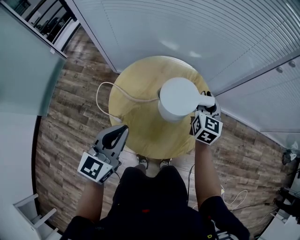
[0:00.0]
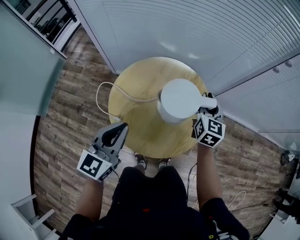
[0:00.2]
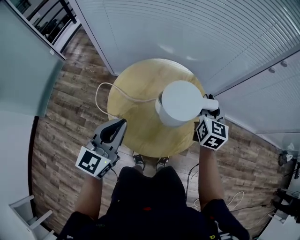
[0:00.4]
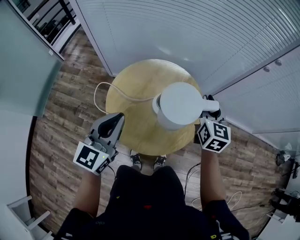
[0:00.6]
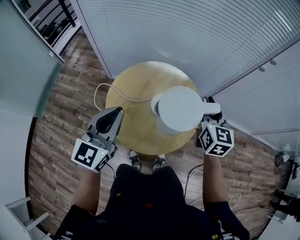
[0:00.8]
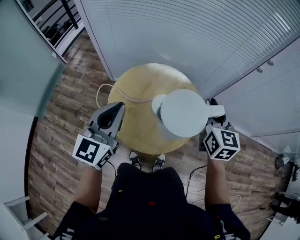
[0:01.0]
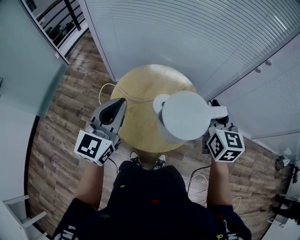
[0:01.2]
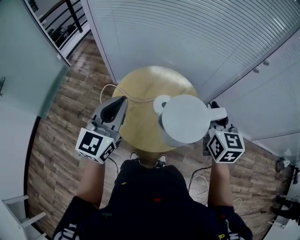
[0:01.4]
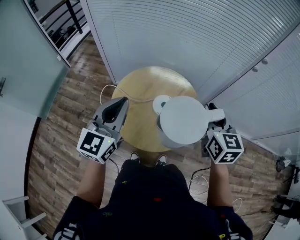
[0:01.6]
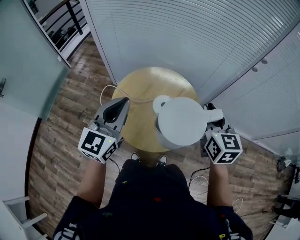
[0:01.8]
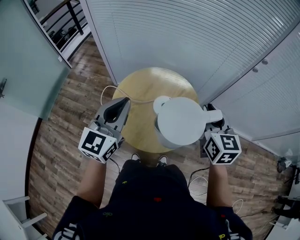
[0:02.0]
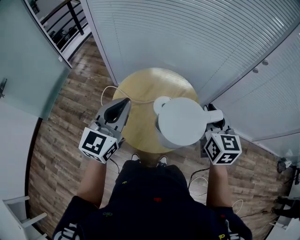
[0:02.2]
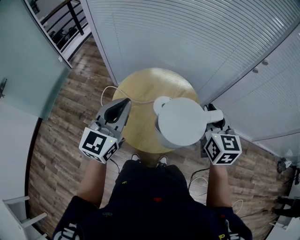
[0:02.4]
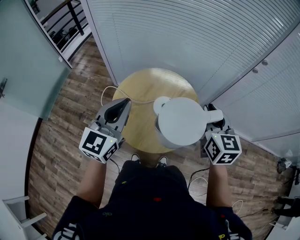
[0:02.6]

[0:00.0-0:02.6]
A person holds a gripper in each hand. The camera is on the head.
0:00.0 to 0:01.2: The right gripper travels upward and backward by about 25 cm. The left gripper shifts approximately 15 cm upward.
0:01.2 to 0:02.6: The grippers stay close to where they were, moving slightly.

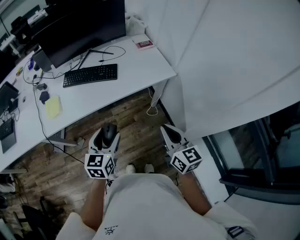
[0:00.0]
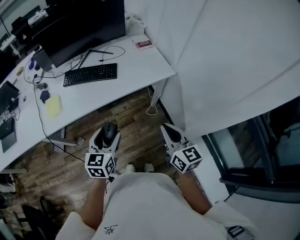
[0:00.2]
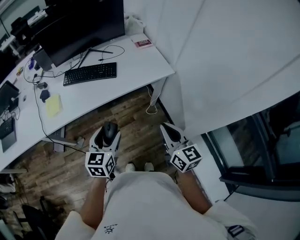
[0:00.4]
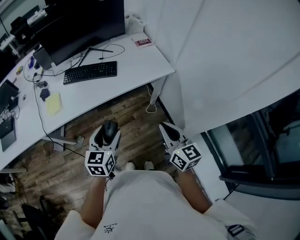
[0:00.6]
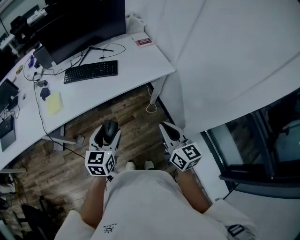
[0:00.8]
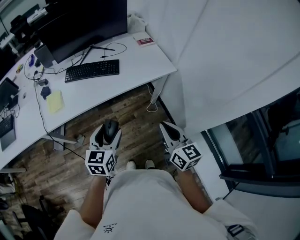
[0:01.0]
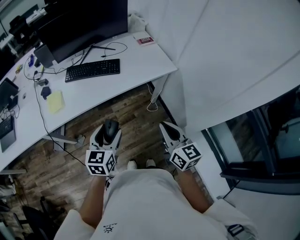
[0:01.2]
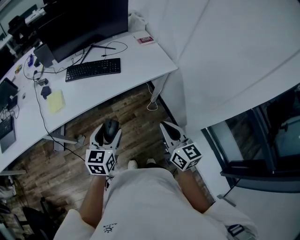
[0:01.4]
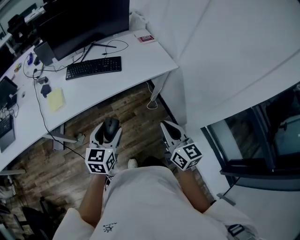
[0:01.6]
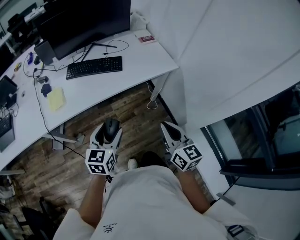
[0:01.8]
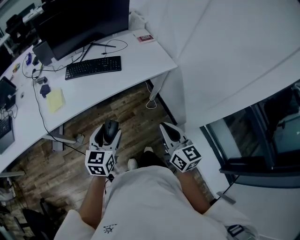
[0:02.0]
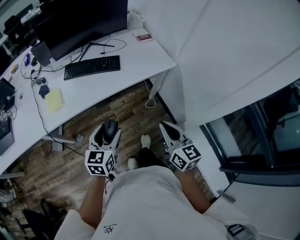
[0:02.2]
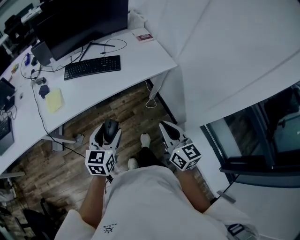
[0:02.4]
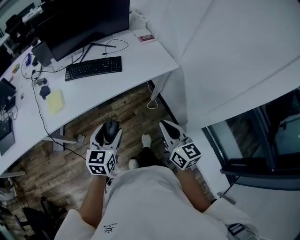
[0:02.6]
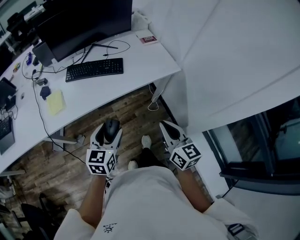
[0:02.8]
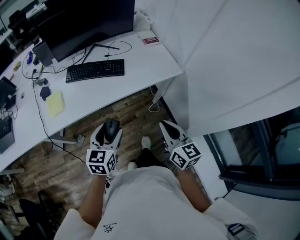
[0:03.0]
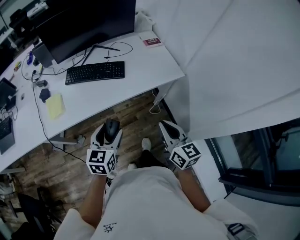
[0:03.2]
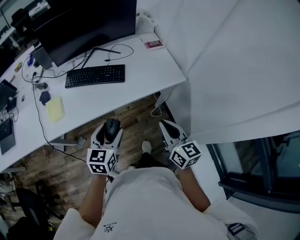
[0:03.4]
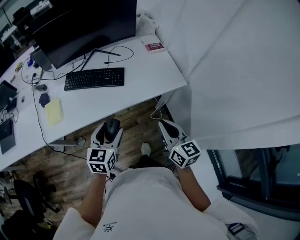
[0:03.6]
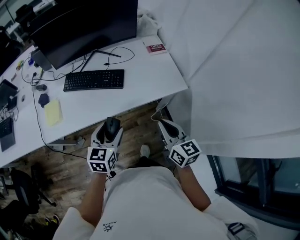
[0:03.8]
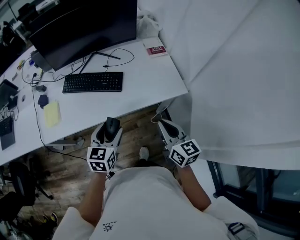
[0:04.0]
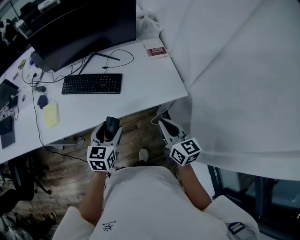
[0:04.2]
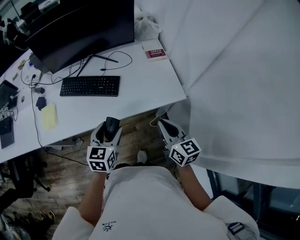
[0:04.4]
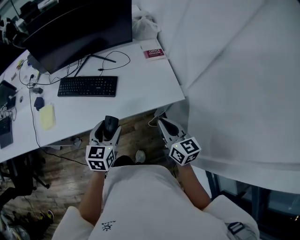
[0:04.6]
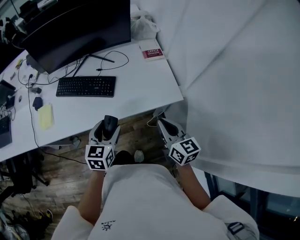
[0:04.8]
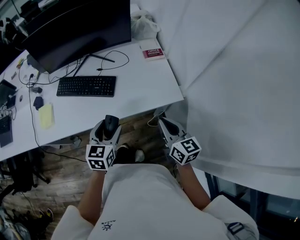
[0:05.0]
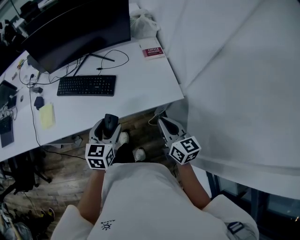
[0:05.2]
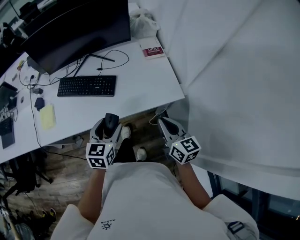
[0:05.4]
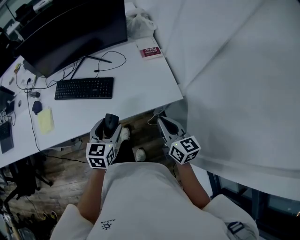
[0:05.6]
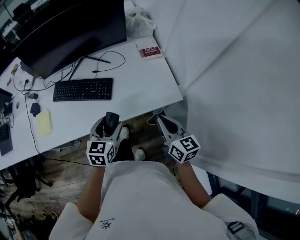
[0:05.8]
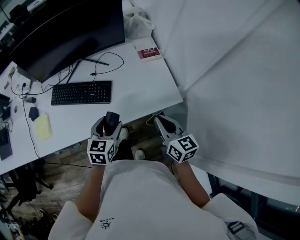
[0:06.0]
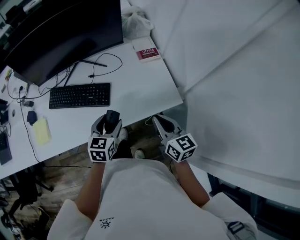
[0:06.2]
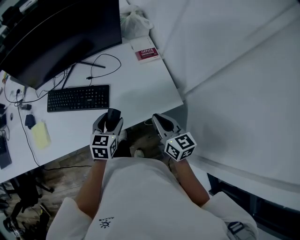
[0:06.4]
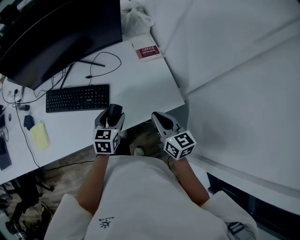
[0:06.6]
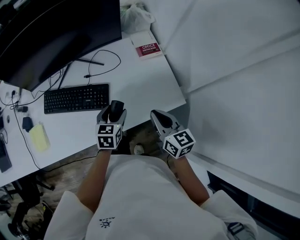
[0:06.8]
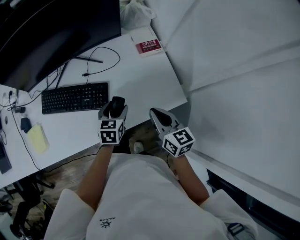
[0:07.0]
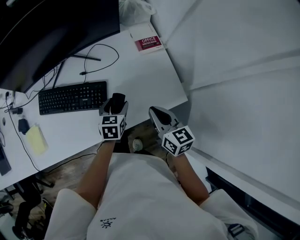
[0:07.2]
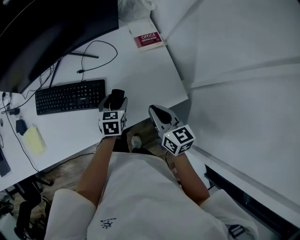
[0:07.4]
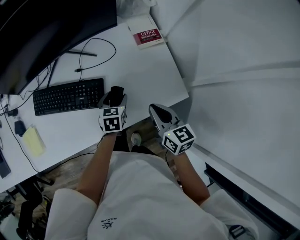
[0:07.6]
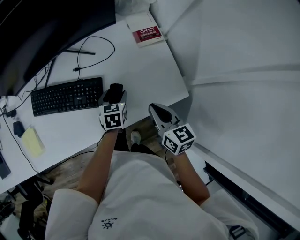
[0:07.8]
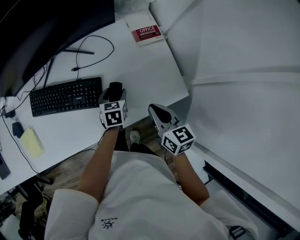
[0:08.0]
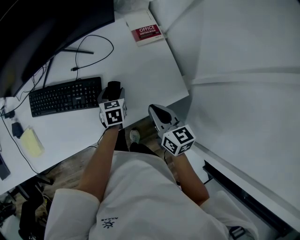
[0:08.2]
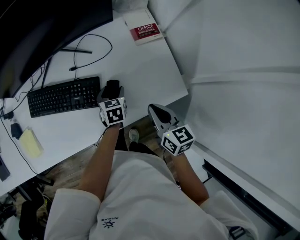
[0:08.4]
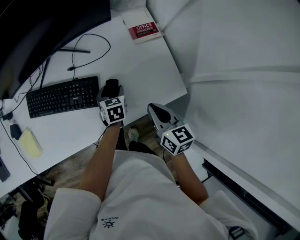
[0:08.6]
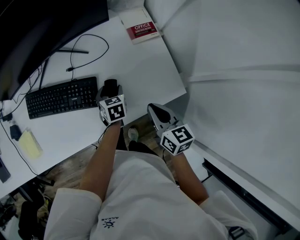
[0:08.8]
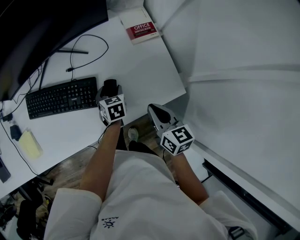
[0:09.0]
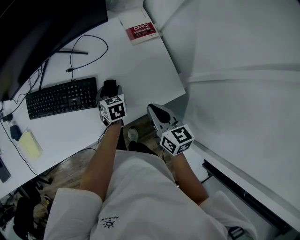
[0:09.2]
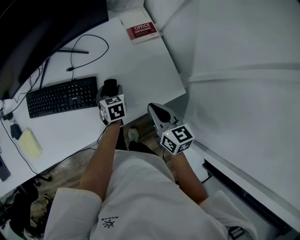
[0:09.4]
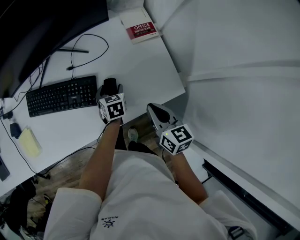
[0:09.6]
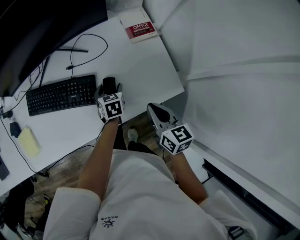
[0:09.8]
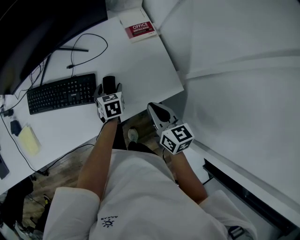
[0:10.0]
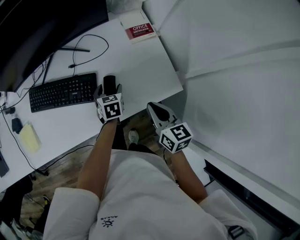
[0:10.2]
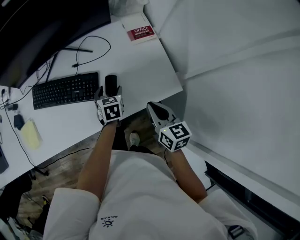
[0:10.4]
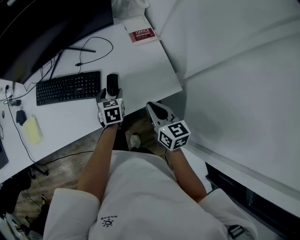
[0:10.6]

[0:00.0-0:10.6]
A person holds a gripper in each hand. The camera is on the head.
0:00.0 to 0:01.6: The left gripper ends up about 5 cm from where it was, while the right gripper moves to the left, about 5 cm.
0:01.6 to 0:03.0: The grippers both shift forward by roughly 5 cm.
0:03.0 to 0:04.6: The grippers both shift forward and to the right by some 25 cm.
0:04.6 to 0:06.0: Both grippers travel together forward, roughly 5 cm.
0:06.0 to 0:07.6: The left gripper goes approximately 20 cm forward and downward. The right gripper is displaced forward and downward by about 15 cm.
0:07.6 to 0:09.0: The grippers make only small movements.
0:09.0 to 0:10.6: The left gripper is displaced backward and upward by roughly 10 cm.

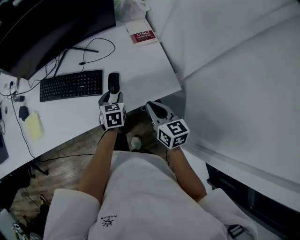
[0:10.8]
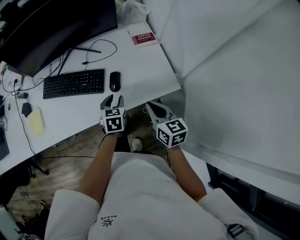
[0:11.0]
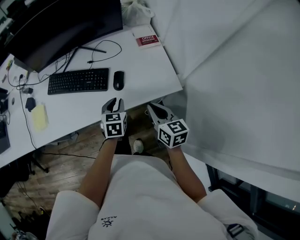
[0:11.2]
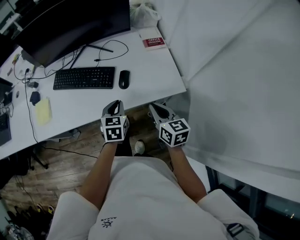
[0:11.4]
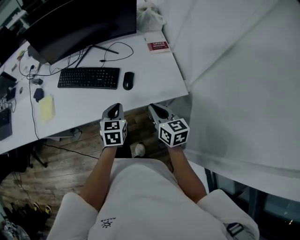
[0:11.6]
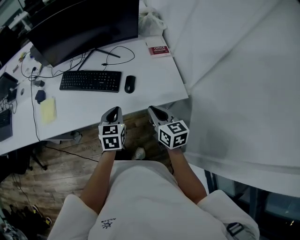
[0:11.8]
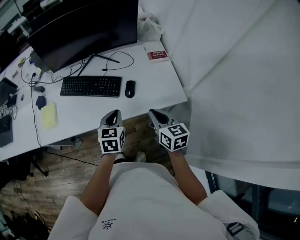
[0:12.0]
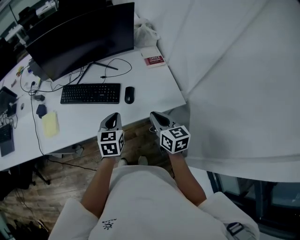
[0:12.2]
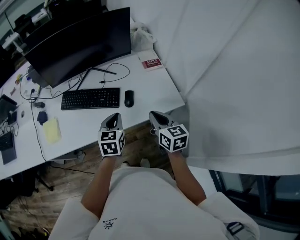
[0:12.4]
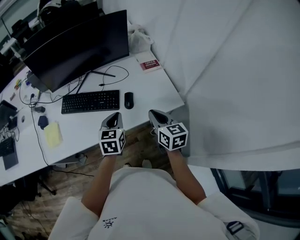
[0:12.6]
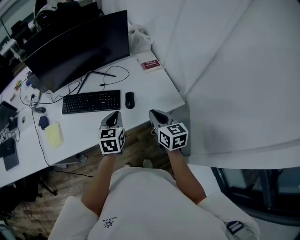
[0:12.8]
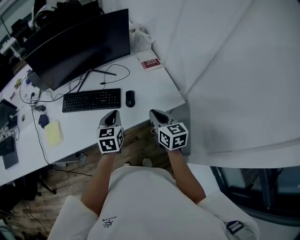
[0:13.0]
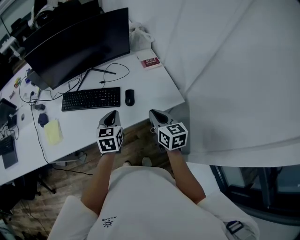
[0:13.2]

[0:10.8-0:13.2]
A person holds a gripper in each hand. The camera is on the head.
0:10.8 to 0:12.0: The left gripper moves upward, backward and to the left, about 20 cm, and closes its fingers; the right gripper shifts some 5 cm to the left.
0:12.0 to 0:13.2: The grippers make only small movements.

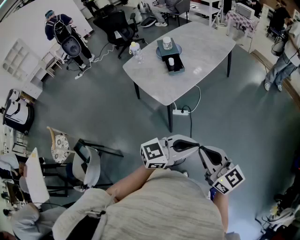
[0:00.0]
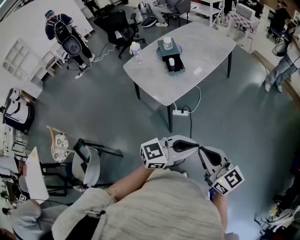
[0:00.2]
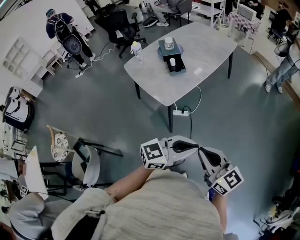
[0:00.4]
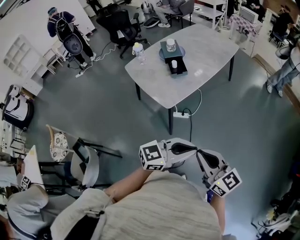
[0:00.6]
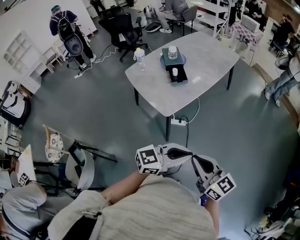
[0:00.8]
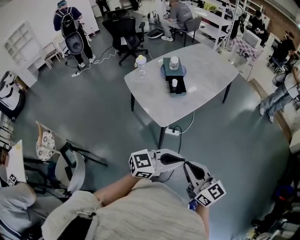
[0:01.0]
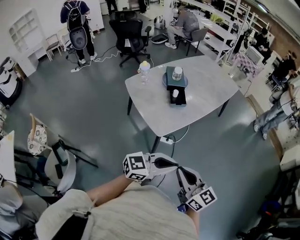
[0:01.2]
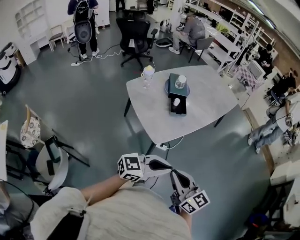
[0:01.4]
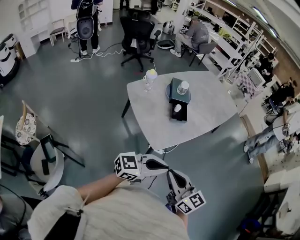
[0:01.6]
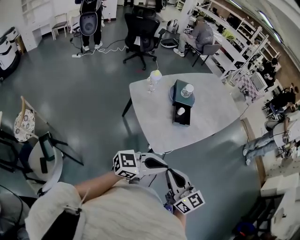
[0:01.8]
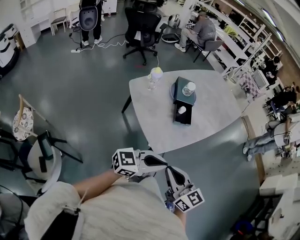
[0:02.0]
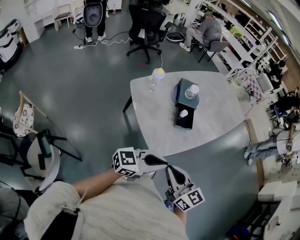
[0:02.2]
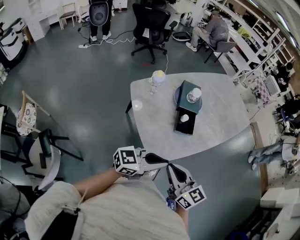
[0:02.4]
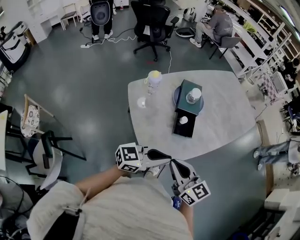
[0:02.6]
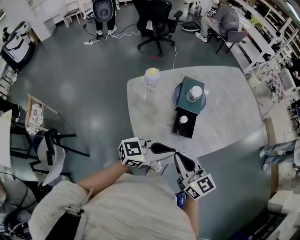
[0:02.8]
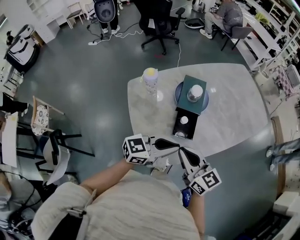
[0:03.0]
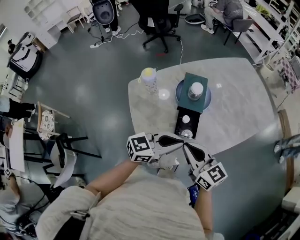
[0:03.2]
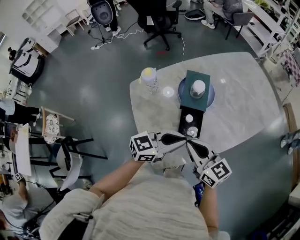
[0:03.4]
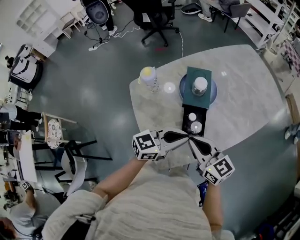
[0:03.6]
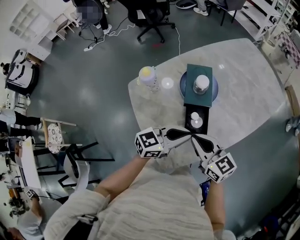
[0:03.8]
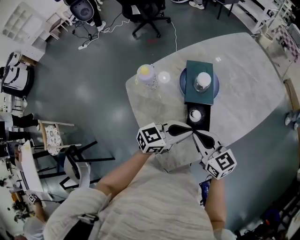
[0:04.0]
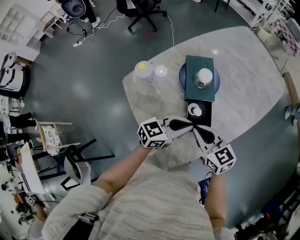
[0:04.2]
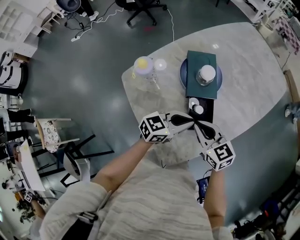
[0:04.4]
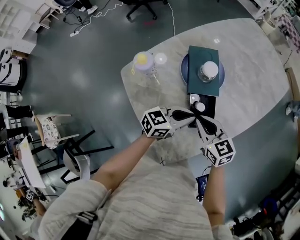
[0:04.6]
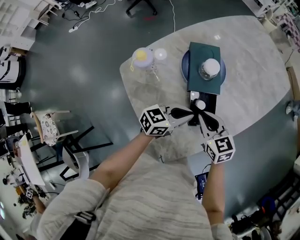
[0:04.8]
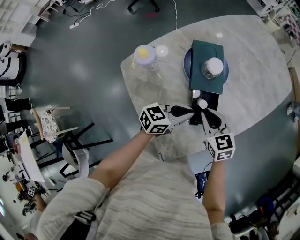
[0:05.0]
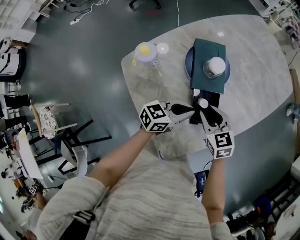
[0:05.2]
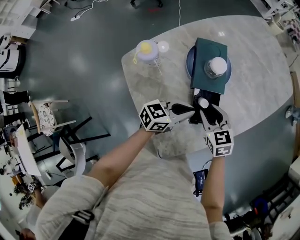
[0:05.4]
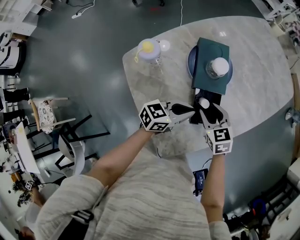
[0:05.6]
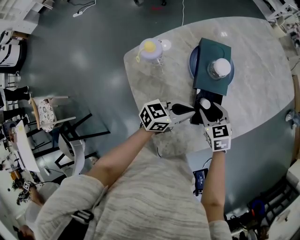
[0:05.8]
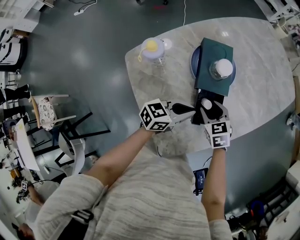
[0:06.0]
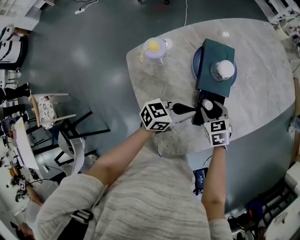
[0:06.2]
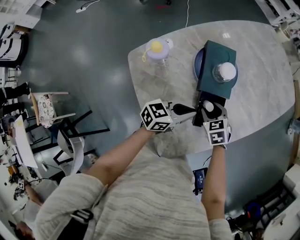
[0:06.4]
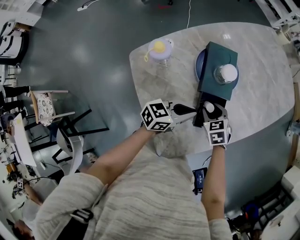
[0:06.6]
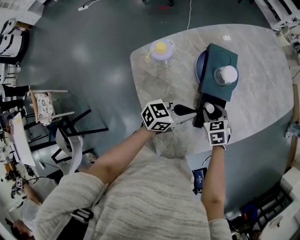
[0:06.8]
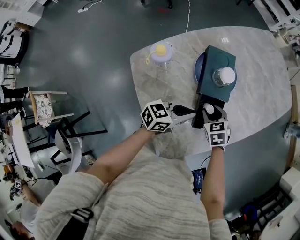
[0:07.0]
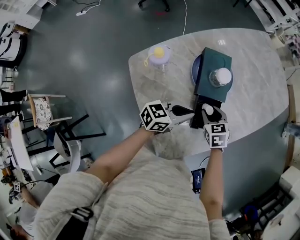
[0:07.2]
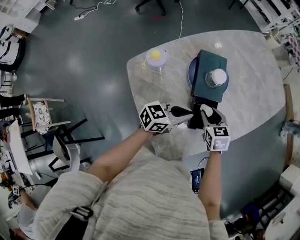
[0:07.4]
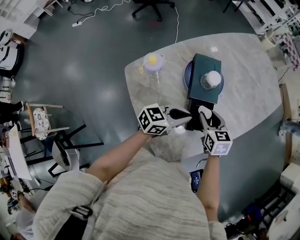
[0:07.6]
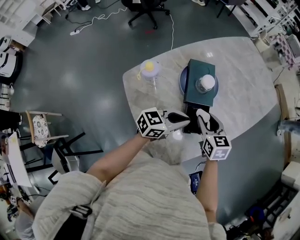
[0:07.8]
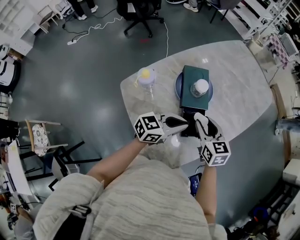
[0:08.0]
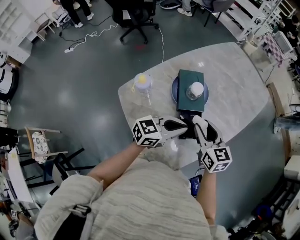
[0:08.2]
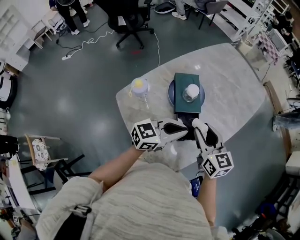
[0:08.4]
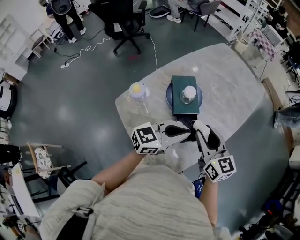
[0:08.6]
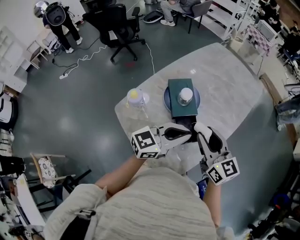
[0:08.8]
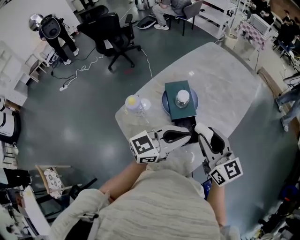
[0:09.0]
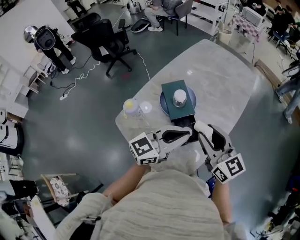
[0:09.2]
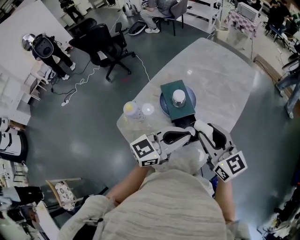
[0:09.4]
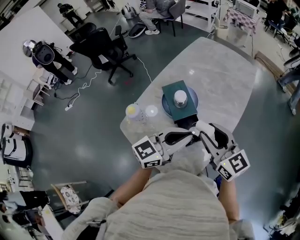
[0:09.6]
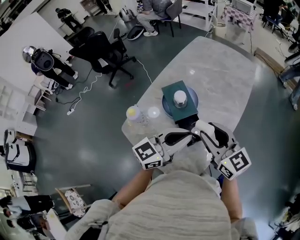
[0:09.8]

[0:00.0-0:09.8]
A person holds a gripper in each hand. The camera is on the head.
0:00.0 to 0:01.4: Both grippers move to the left and forward, some 15 cm.
0:01.4 to 0:02.8: Both grippers move forward, approximately 35 cm.
0:02.8 to 0:04.2: Both grippers move forward and downward, approximately 20 cm.
0:04.2 to 0:05.6: The left gripper moves downward, about 5 cm. The right gripper heads downward and forward, covering approximately 15 cm, turns by approximately 20 degrees, and opens up.
0:05.6 to 0:07.0: The grippers make only small movements.
0:07.0 to 0:08.4: The left gripper moves upward, approximately 15 cm, and changes its angle by about 20 degrees, while the right gripper travels upward by some 25 cm, and angles its fingers upward, by about 40 degrees.
0:08.4 to 0:09.8: Both grippers travel together upward, about 10 cm.
